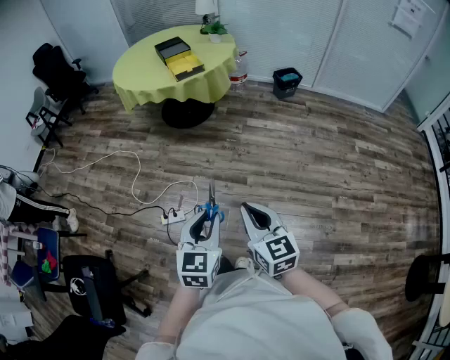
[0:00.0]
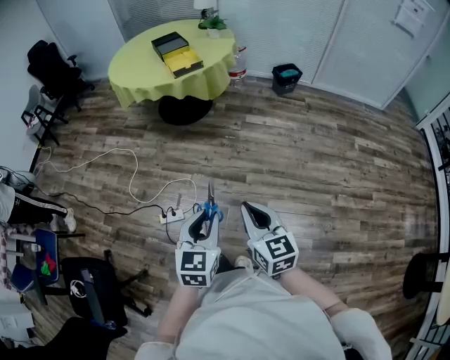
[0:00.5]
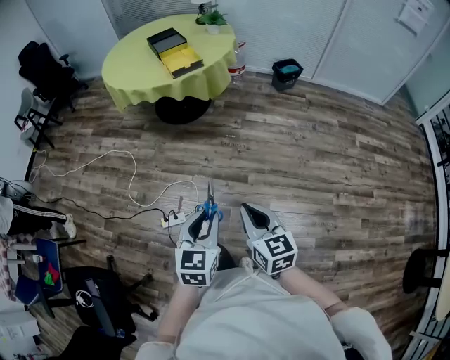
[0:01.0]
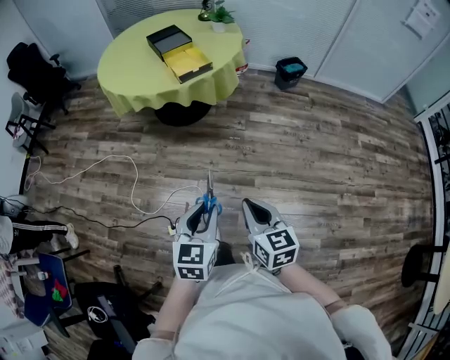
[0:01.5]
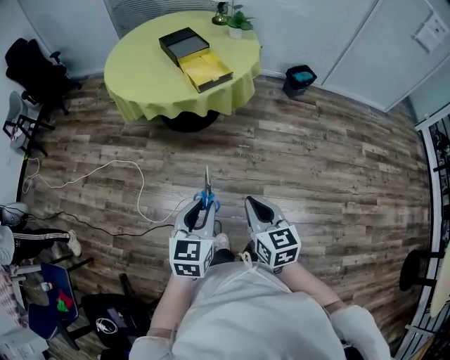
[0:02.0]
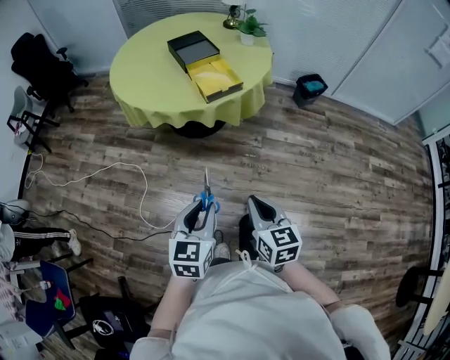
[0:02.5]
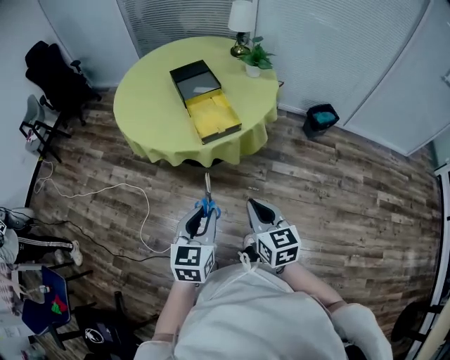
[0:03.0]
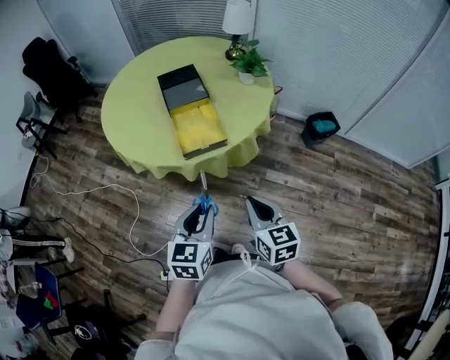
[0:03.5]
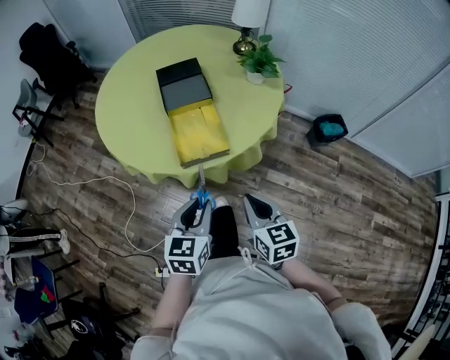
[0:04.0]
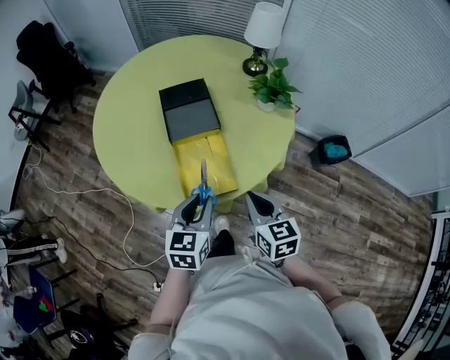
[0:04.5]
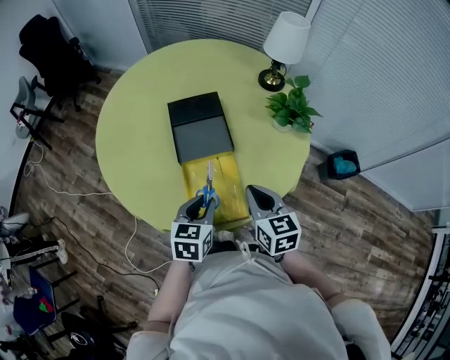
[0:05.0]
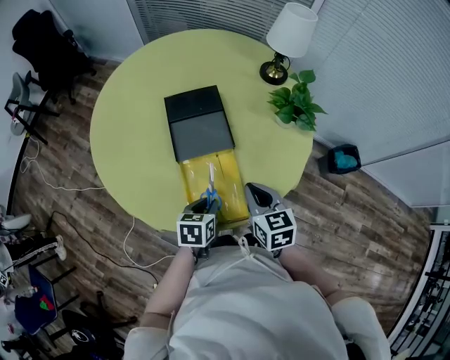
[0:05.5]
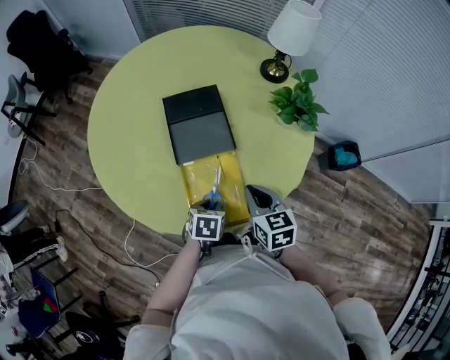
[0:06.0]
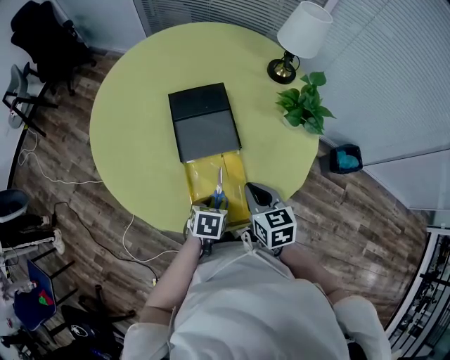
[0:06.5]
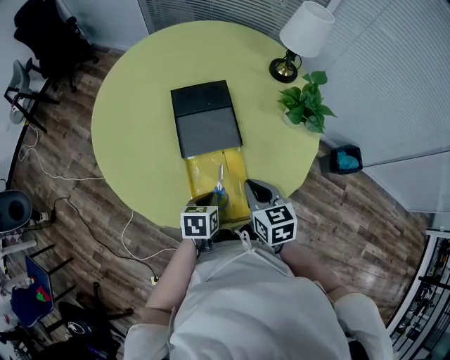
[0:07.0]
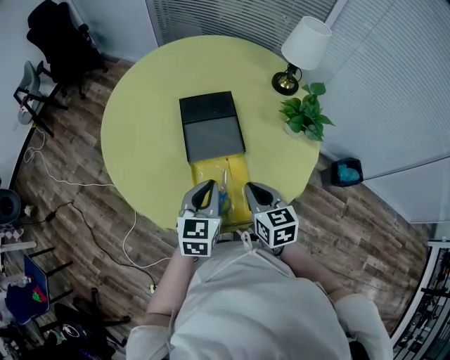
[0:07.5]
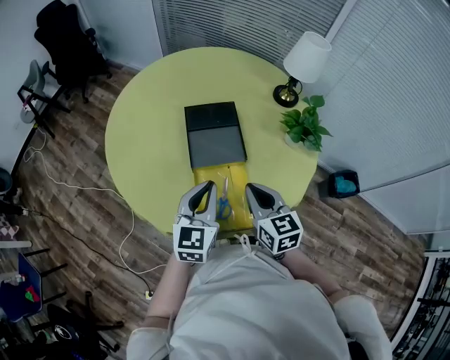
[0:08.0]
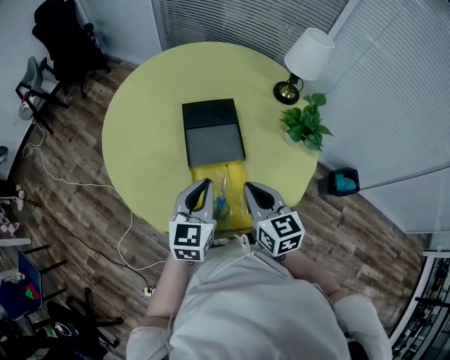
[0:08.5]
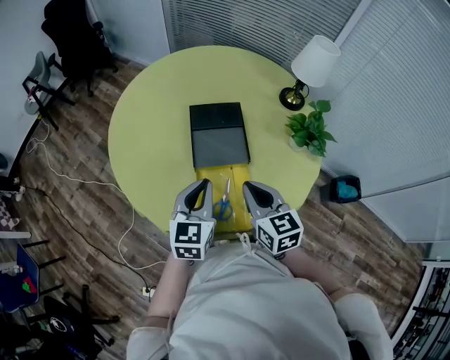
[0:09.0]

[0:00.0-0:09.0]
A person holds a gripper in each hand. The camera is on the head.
0:00.0 to 0:02.0: Both grippers move forward and to the left, some 40 cm.
0:02.0 to 0:04.5: The pair of grippers is taken forward, roughly 60 cm.
0:04.5 to 0:07.0: The left gripper heads downward and forward, covering some 20 cm, and turns by roughly 30 degrees, while the right gripper travels forward and downward by some 15 cm.
0:07.0 to 0:09.0: The right gripper travels upward by approximately 10 cm, while the left gripper heads upward, covering some 20 cm, and tips its fingers upward by some 30 degrees.

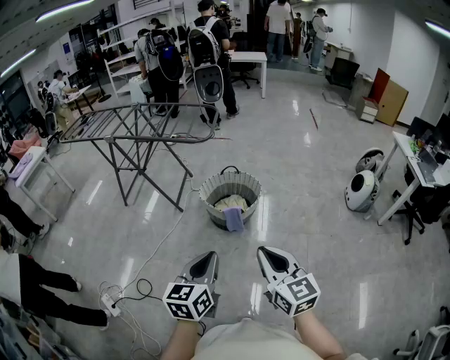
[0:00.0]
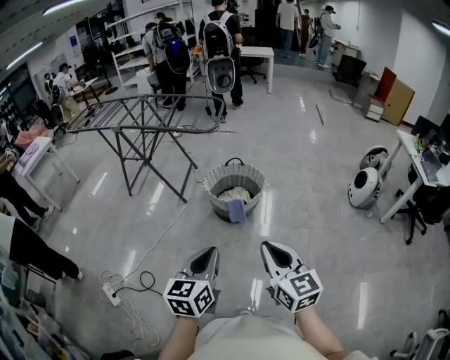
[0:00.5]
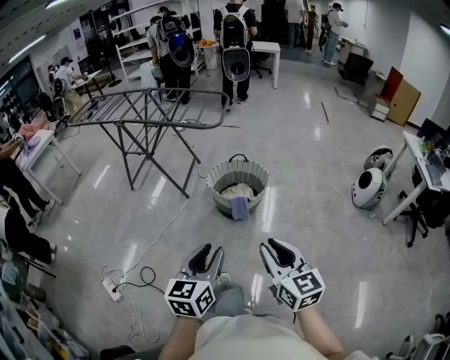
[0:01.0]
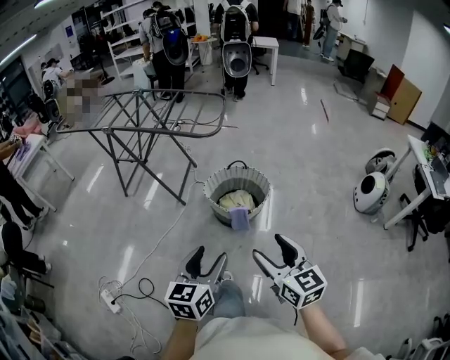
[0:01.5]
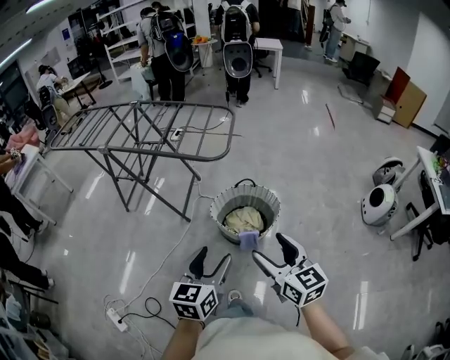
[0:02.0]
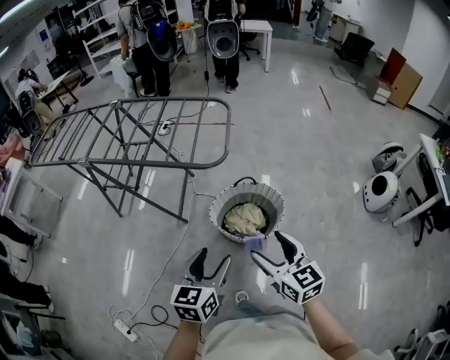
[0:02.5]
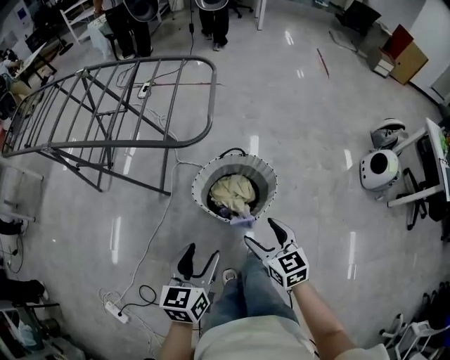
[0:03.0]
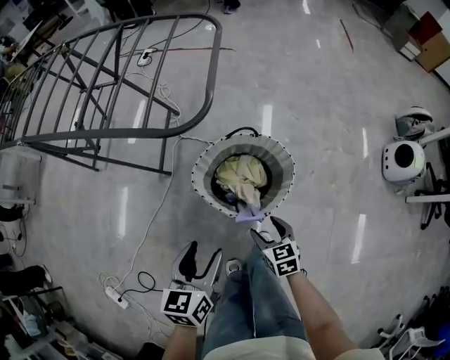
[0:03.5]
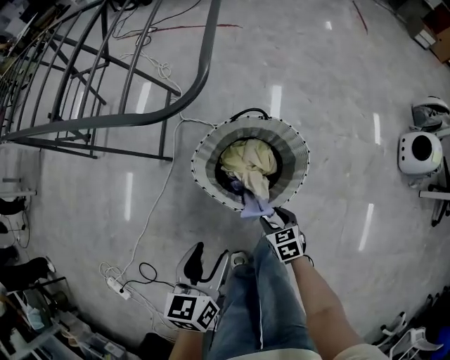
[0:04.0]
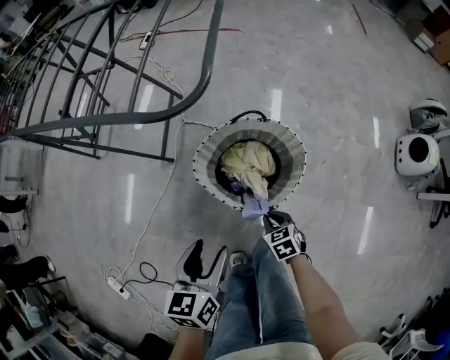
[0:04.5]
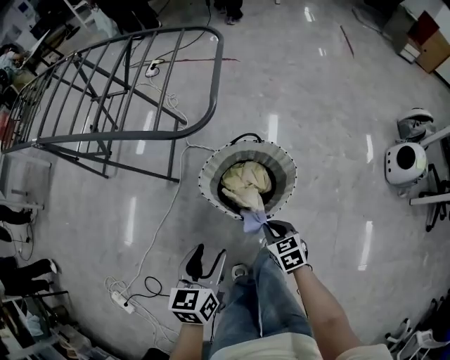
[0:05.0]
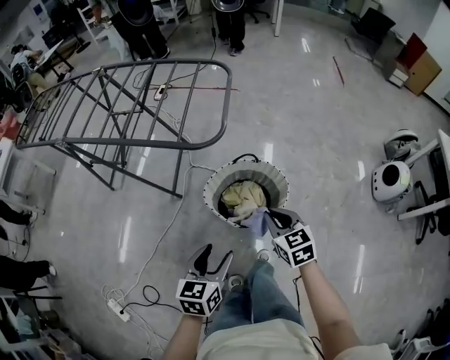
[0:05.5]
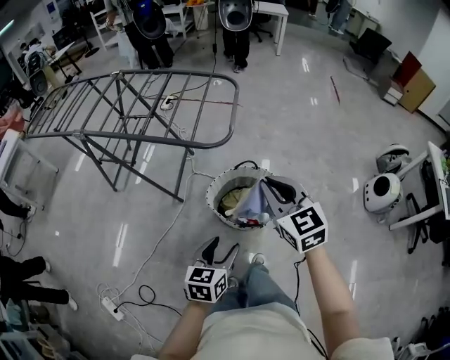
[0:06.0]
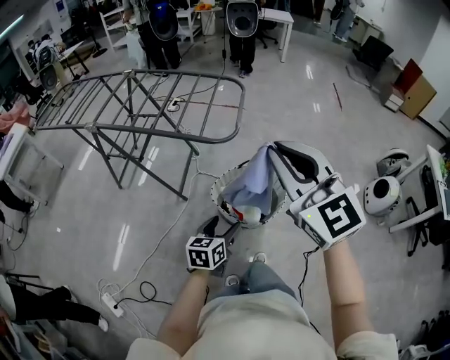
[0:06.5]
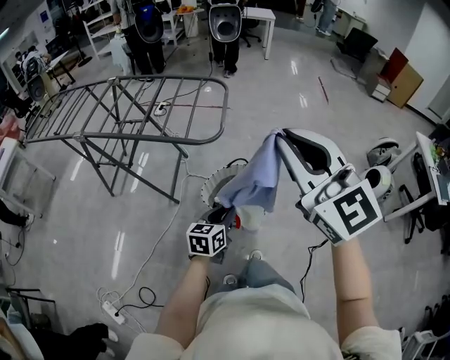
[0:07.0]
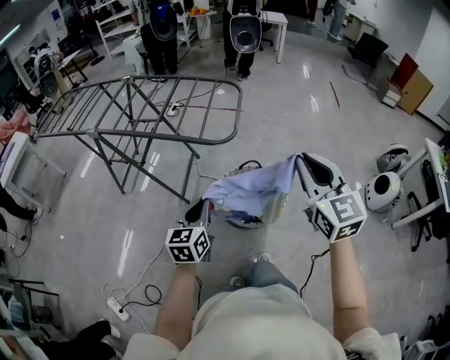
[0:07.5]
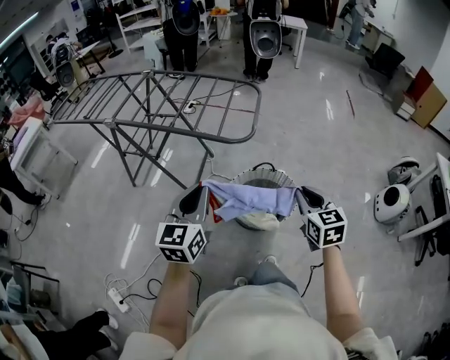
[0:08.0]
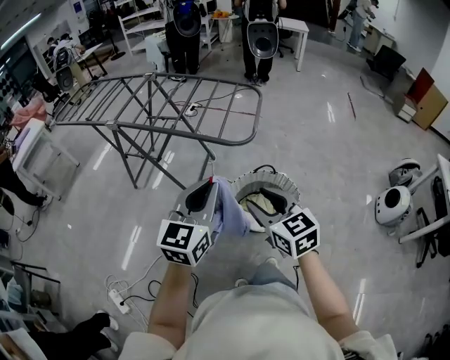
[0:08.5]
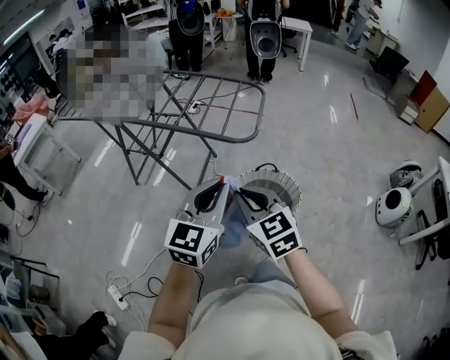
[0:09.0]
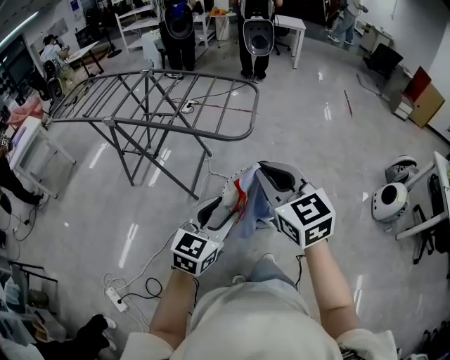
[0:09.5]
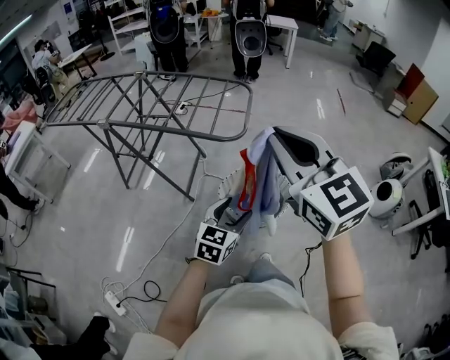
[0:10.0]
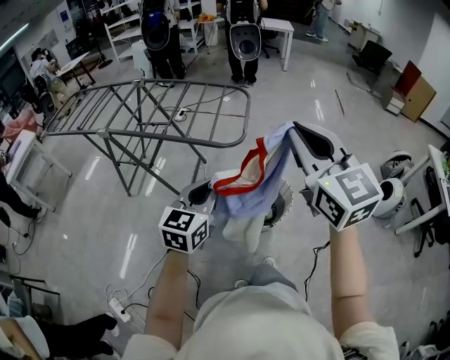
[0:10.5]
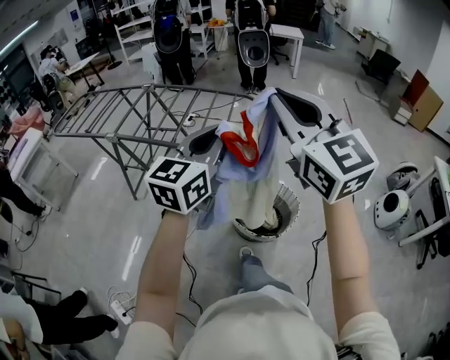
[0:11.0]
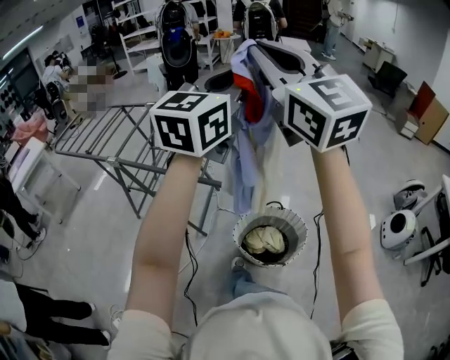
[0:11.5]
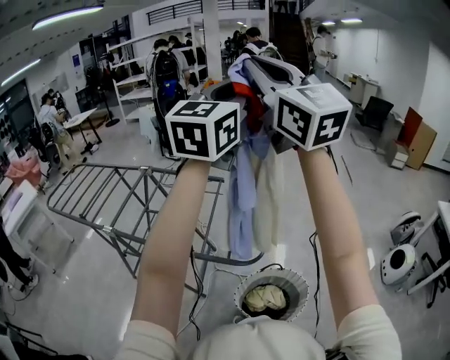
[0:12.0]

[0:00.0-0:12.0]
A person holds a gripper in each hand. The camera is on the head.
0:00.0 to 0:02.0: The grippers both shift forward by some 25 cm. The right gripper opens, while the left gripper opens up.
0:02.0 to 0:04.0: The left gripper moves downward and forward, roughly 35 cm, and rotates roughly 20 degrees; the right gripper heads downward and forward, covering about 60 cm, tips its fingers downward by approximately 40 degrees, and closes up.
0:04.0 to 0:06.0: The left gripper goes about 15 cm upward and backward, while the right gripper is displaced upward by some 50 cm, tips its fingers upward by some 40 degrees, and closes.
0:06.0 to 0:08.0: The left gripper is displaced upward and to the left by approximately 20 cm, changes its angle by approximately 30 degrees, and closes up. The right gripper is displaced to the right by approximately 5 cm, and reaches approximately 20 cm upward, then returns.
0:08.0 to 0:10.0: The left gripper heads to the right and downward, covering about 15 cm, turns by roughly 20 degrees, and opens up. The right gripper shifts about 30 cm upward and to the left, changes its angle by roughly 30 degrees, and opens, then closes again.
0:10.0 to 0:12.0: The right gripper moves forward and upward, approximately 50 cm, and swivels approximately 30 degrees. Meanwhile the left gripper heads upward and forward, covering about 70 cm, points its fingers roughly 40 degrees further upward, and closes up.

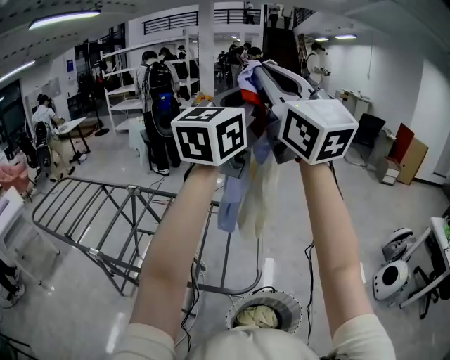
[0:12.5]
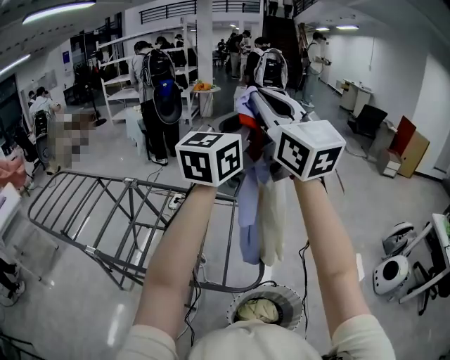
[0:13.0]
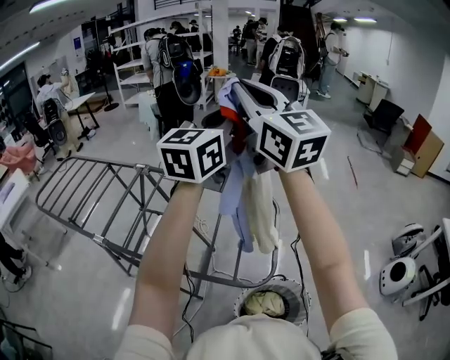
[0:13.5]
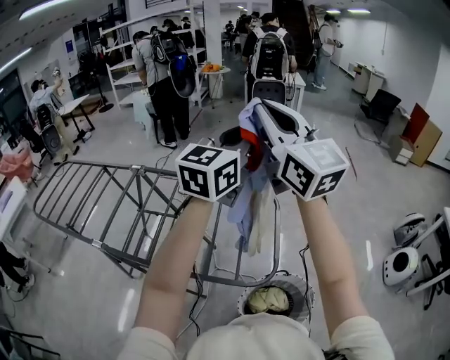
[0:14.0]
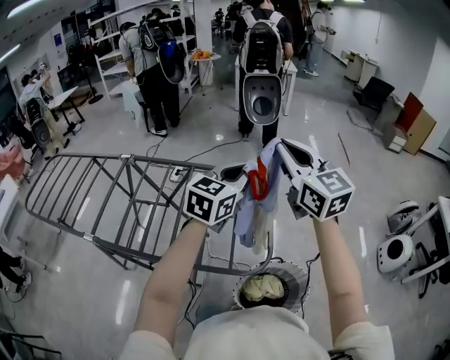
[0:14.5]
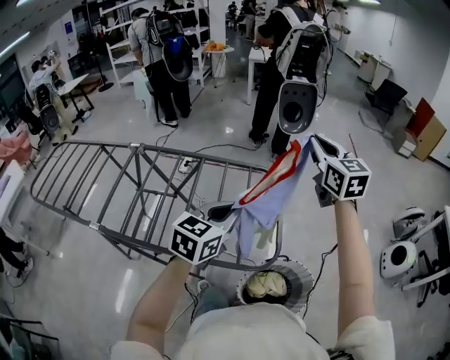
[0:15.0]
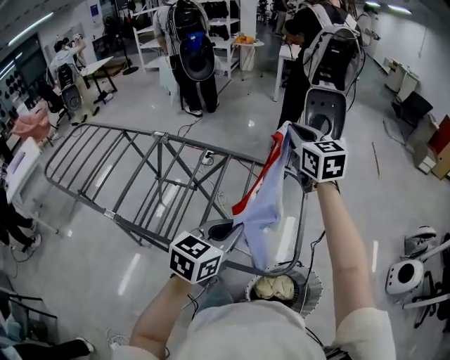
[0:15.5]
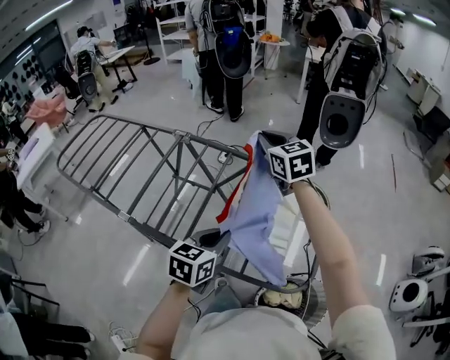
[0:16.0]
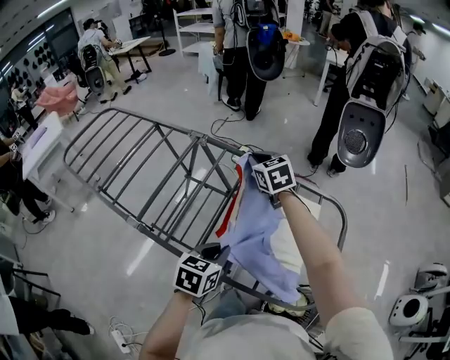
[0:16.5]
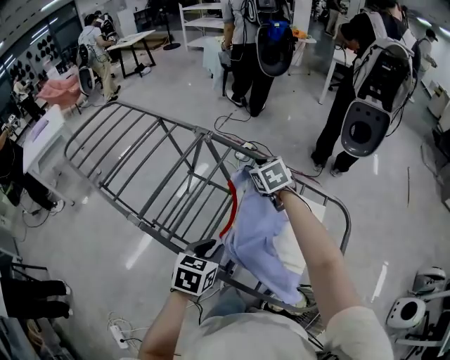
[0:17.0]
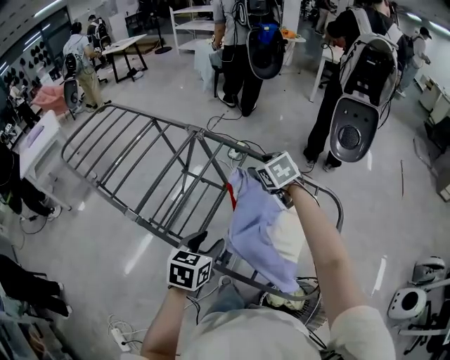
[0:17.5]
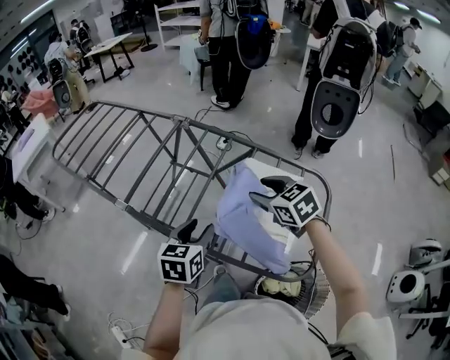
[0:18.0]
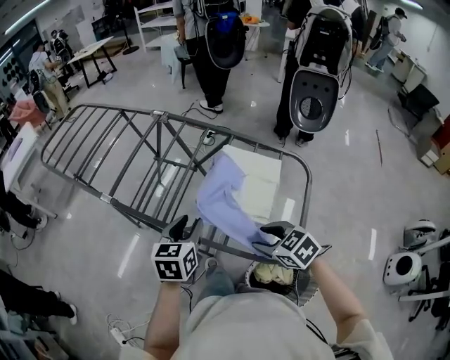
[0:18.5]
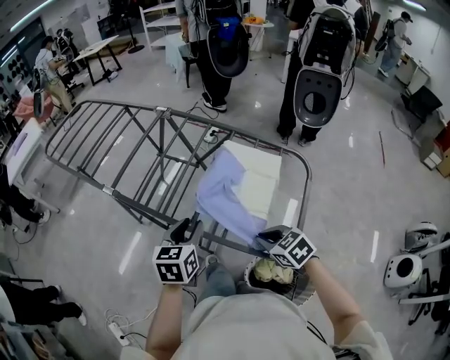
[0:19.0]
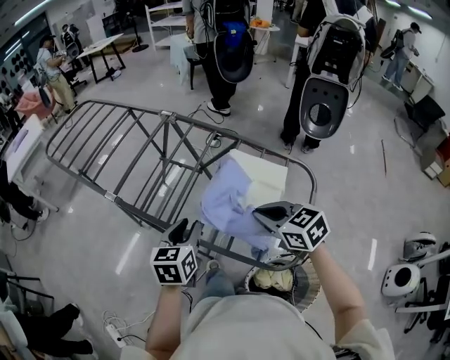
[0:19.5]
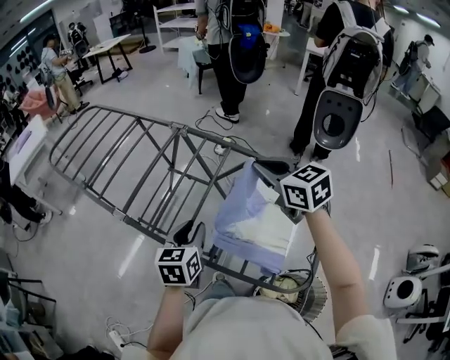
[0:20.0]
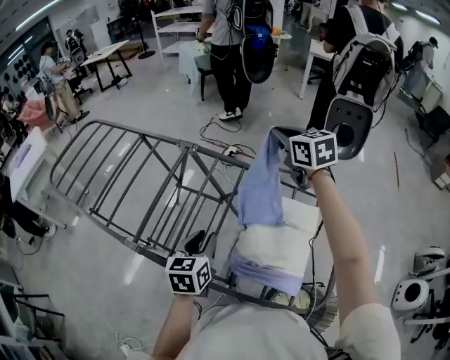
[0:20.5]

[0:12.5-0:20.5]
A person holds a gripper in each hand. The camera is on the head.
0:12.5 to 0:14.5: The grippers both shift downward by some 30 cm. The right gripper rotates about 30 degrees. The left gripper angles its fingers downward, by roughly 30 degrees.
0:14.5 to 0:16.5: The right gripper shifts by approximately 50 cm, and tilts its fingers some 30 degrees downward. Meanwhile the left gripper changes place by some 40 cm, and rotates about 40 degrees.
0:16.5 to 0:18.5: The right gripper moves backward, approximately 40 cm, rotates approximately 30 degrees, and opens up, while the left gripper moves backward, some 5 cm.
0:18.5 to 0:20.5: The right gripper shifts some 50 cm forward and upward, swivels roughly 30 degrees, and closes. Meanwhile the left gripper shifts roughly 15 cm forward.
